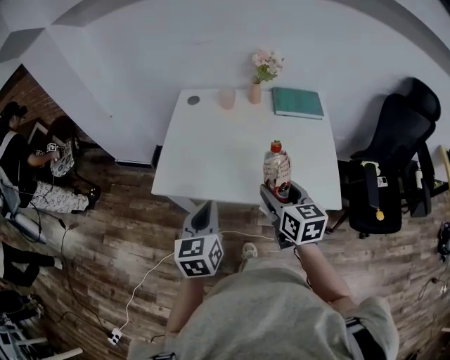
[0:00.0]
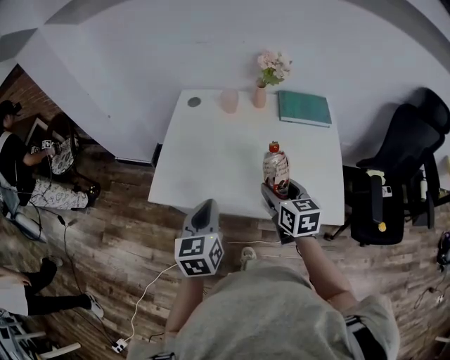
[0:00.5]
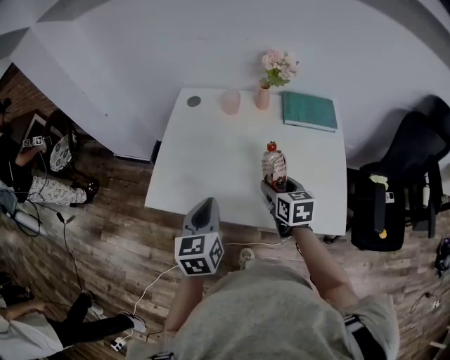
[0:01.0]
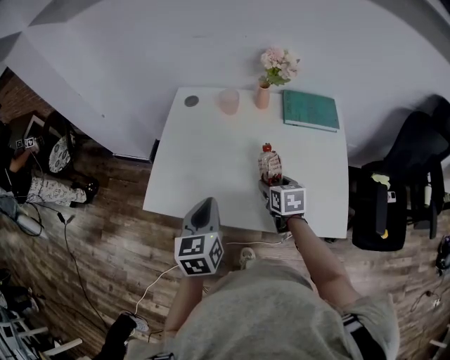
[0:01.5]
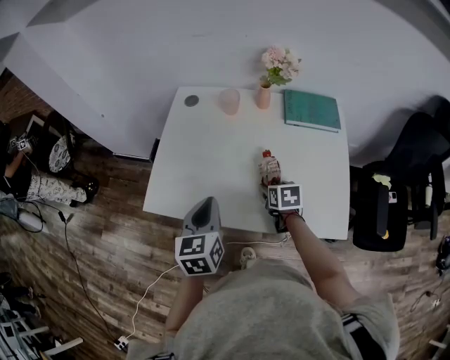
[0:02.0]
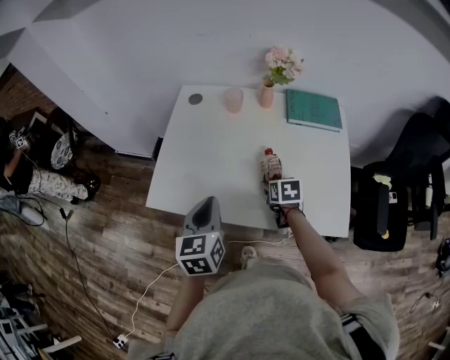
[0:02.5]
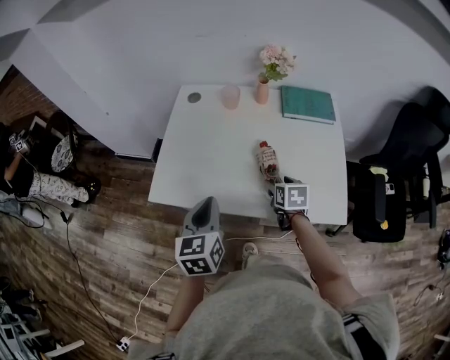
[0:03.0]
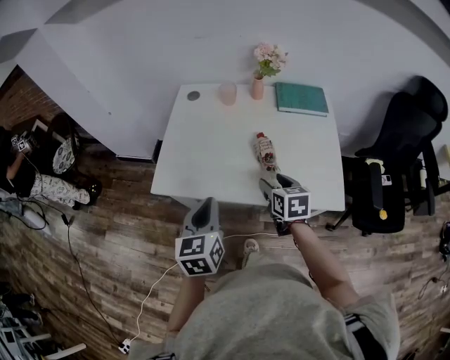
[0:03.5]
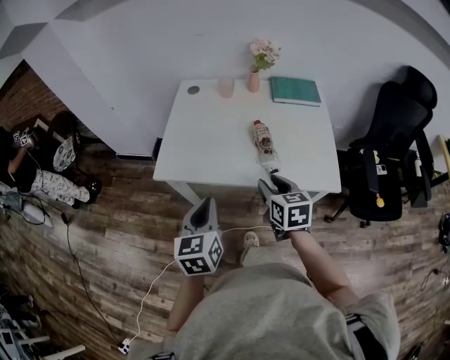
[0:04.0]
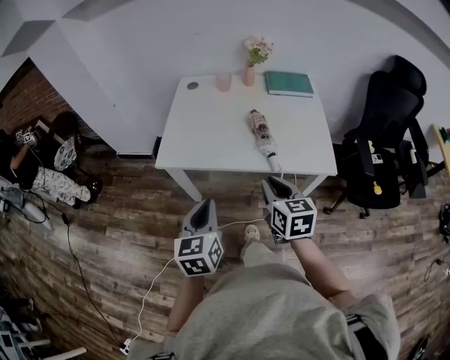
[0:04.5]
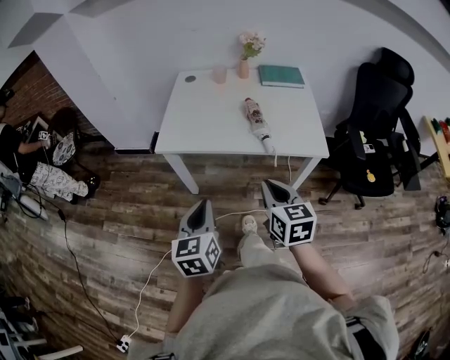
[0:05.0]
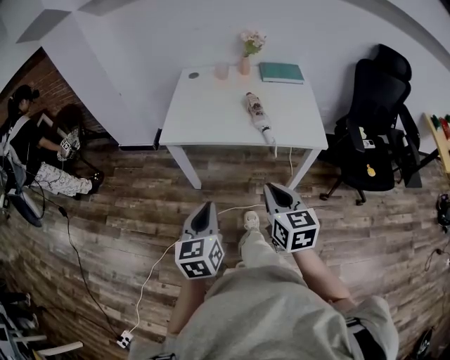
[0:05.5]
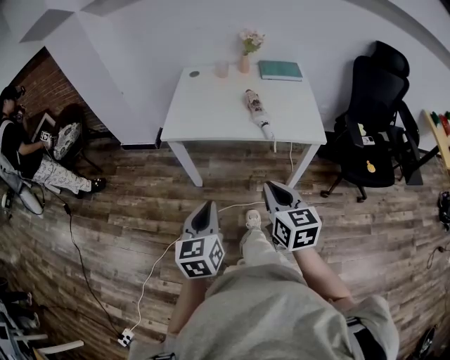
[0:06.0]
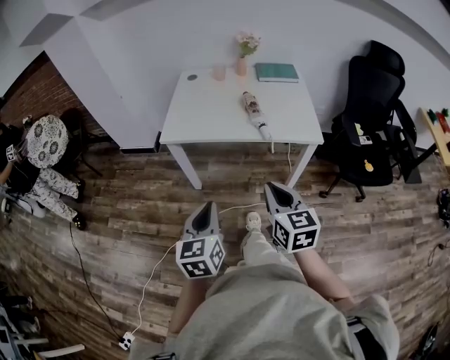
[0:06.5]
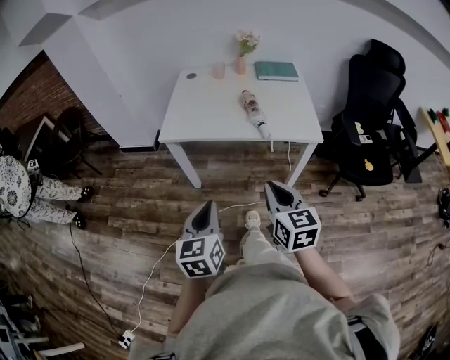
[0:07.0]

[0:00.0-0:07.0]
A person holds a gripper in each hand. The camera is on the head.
0:00.0 to 0:02.0: The right gripper shifts approximately 25 cm downward and forward, and angles its fingers downward, by roughly 30 degrees, while the left gripper shifts some 15 cm forward.
0:02.0 to 0:03.5: The left gripper is displaced backward by some 10 cm, while the right gripper goes roughly 15 cm upward and backward.
0:03.5 to 0:05.0: Both grippers move backward, about 25 cm. The right gripper closes.
0:05.0 to 0:07.0: Both grippers travel together backward, some 10 cm.

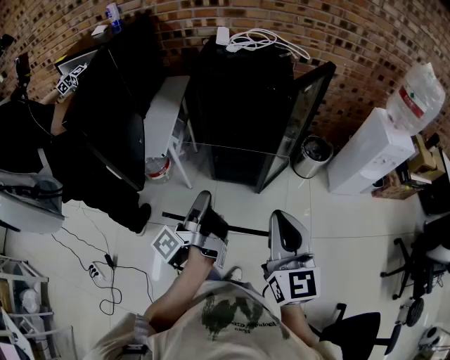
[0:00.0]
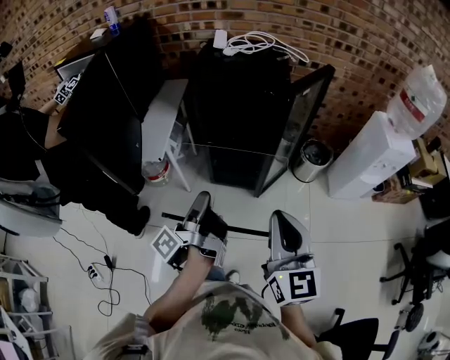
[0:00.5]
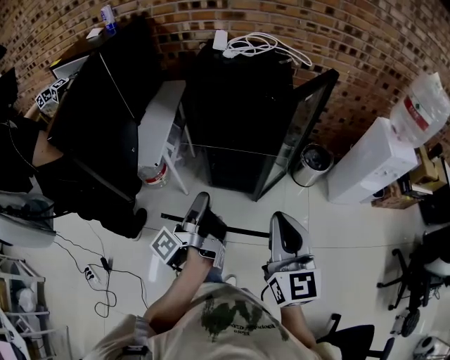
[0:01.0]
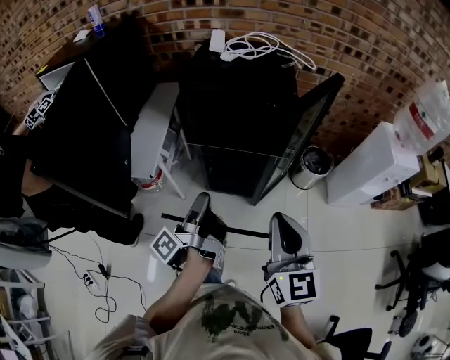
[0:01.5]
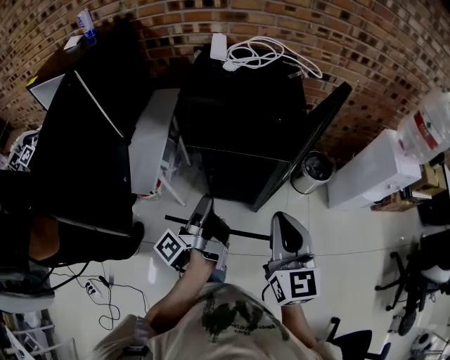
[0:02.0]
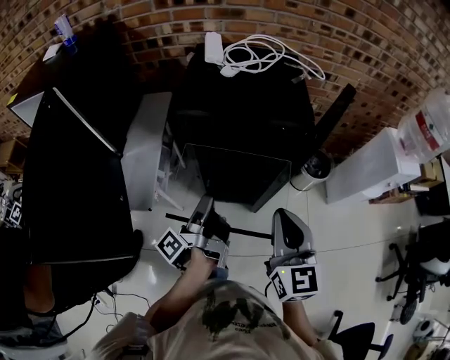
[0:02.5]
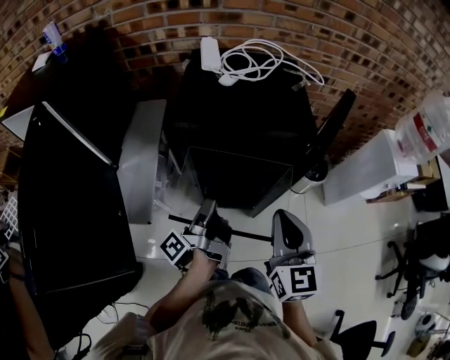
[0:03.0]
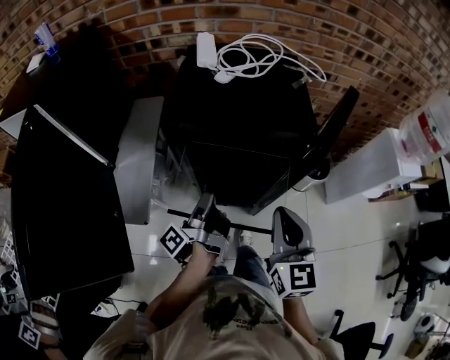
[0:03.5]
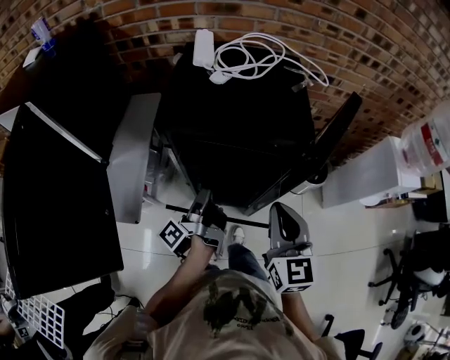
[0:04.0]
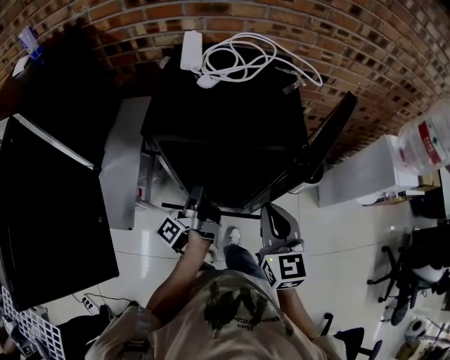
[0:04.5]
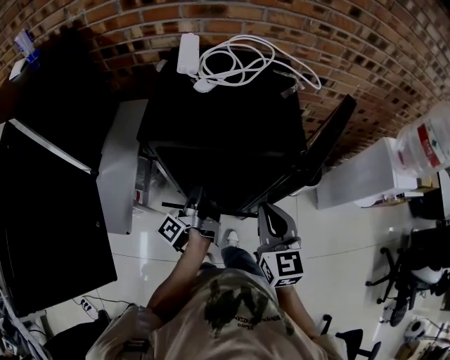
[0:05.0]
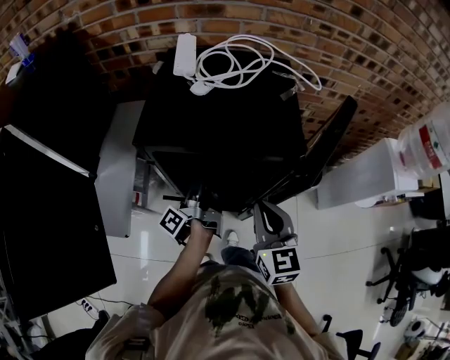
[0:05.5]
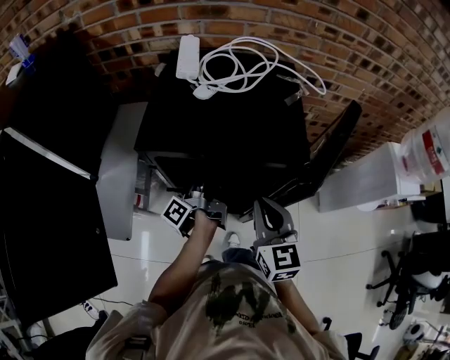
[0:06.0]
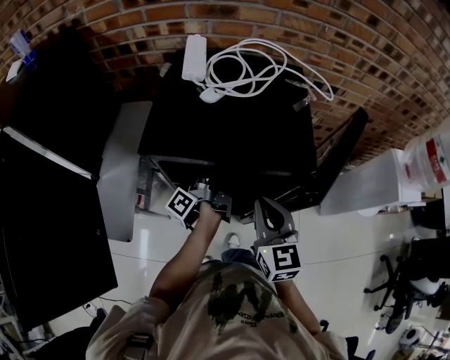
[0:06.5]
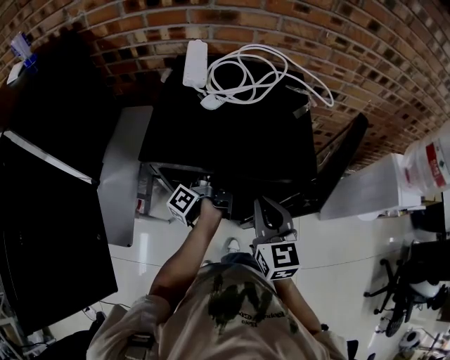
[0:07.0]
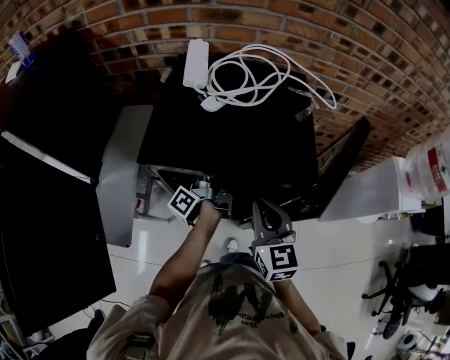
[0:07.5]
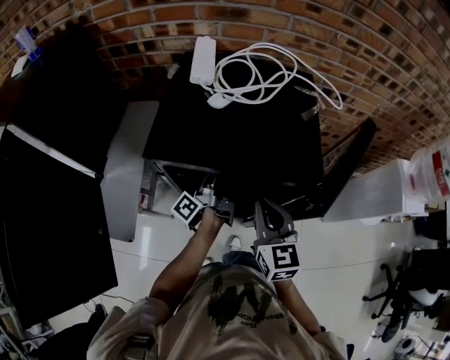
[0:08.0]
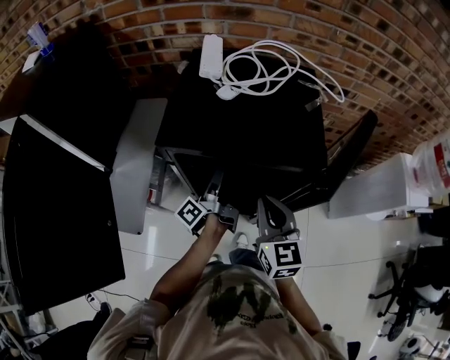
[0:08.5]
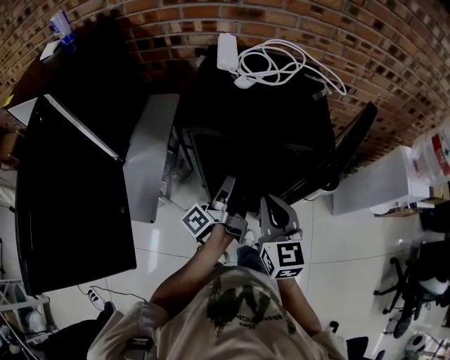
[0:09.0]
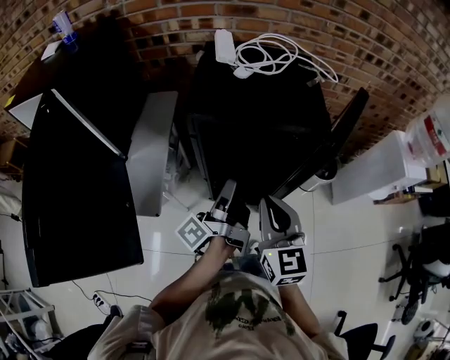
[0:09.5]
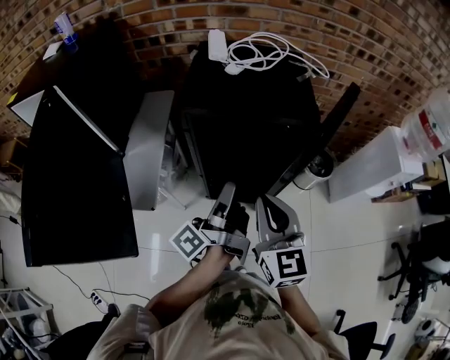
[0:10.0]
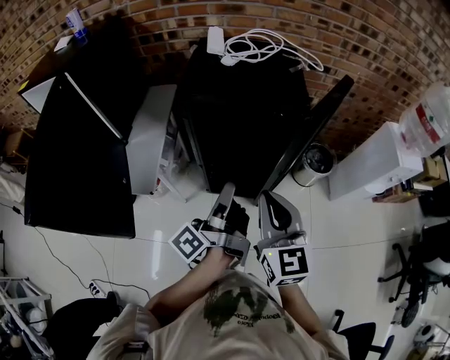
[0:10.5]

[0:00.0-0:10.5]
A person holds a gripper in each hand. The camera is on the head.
0:00.0 to 0:02.0: The right gripper moves some 20 cm.
0:02.0 to 0:04.0: The right gripper changes place by approximately 15 cm.
0:04.0 to 0:06.5: The right gripper ends up some 10 cm from where it was.
0:08.5 to 0:10.5: The right gripper shifts by some 20 cm.

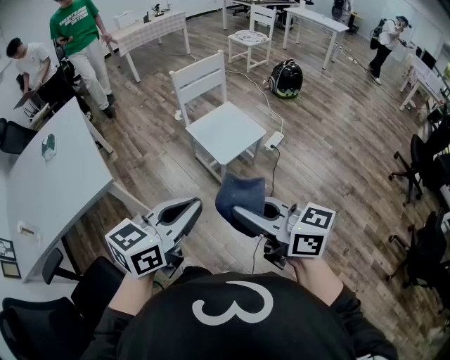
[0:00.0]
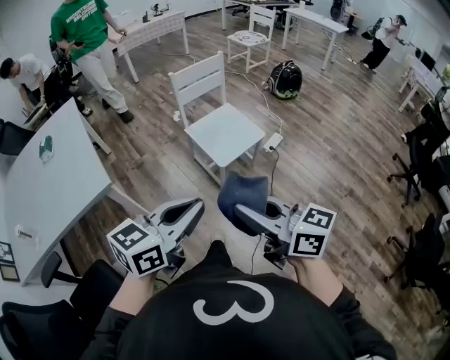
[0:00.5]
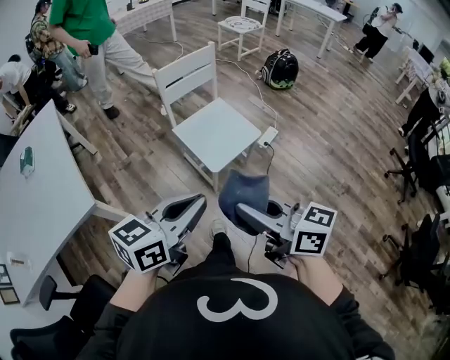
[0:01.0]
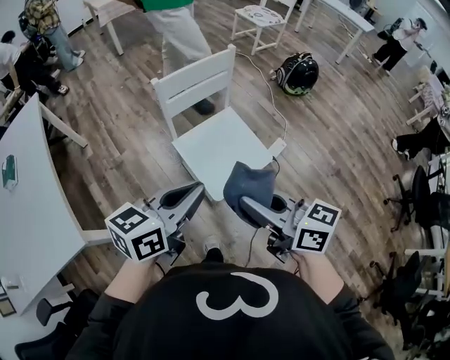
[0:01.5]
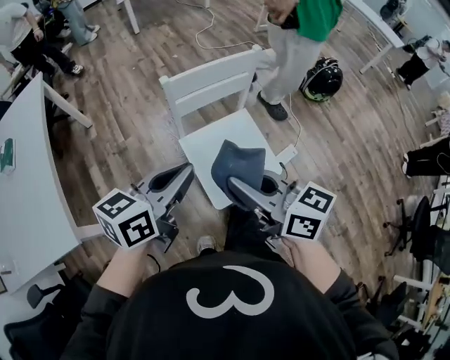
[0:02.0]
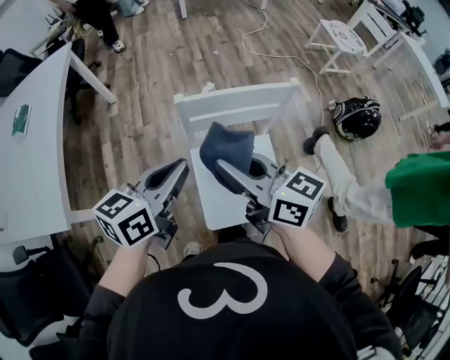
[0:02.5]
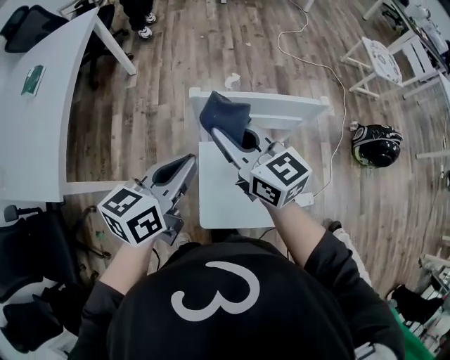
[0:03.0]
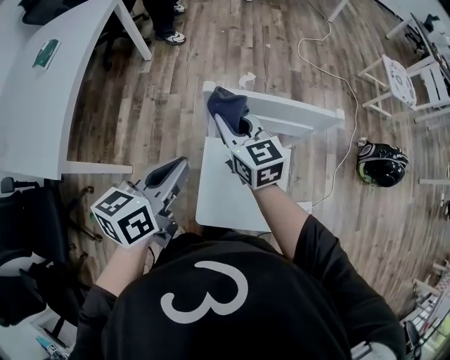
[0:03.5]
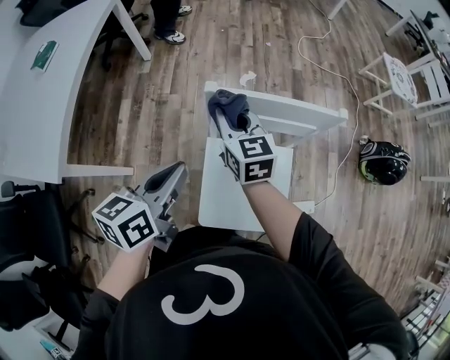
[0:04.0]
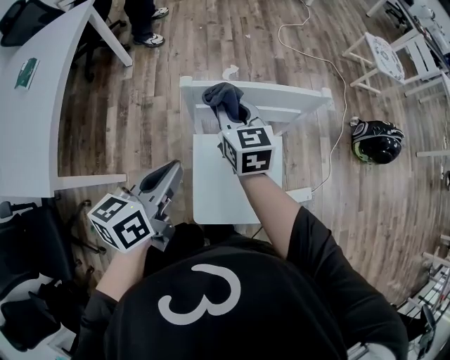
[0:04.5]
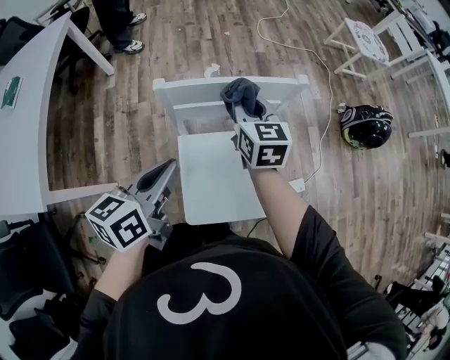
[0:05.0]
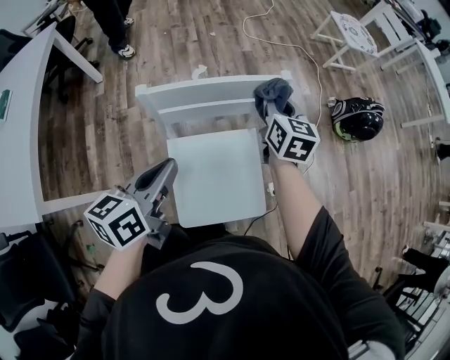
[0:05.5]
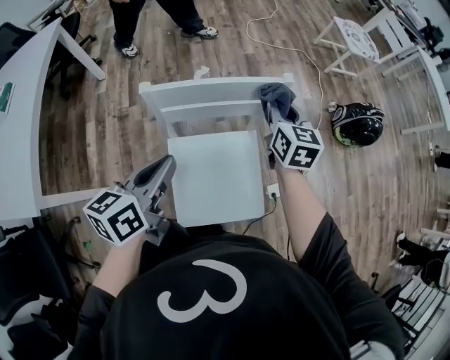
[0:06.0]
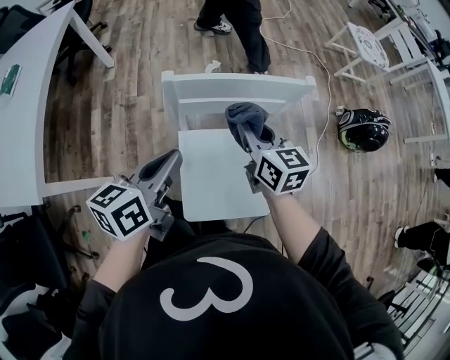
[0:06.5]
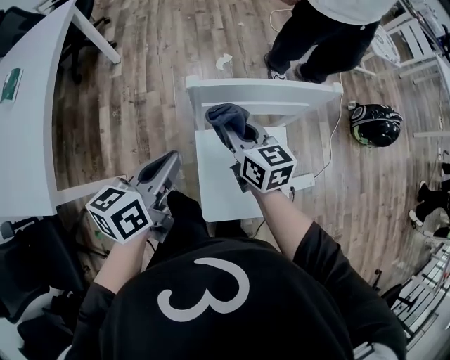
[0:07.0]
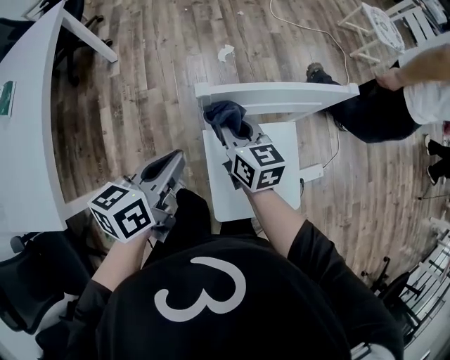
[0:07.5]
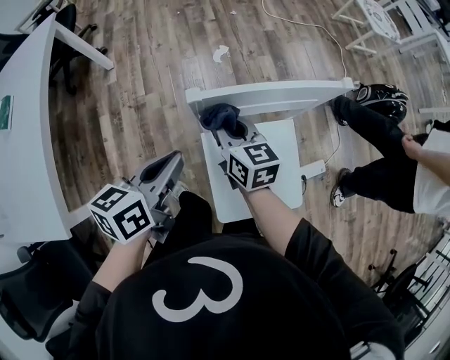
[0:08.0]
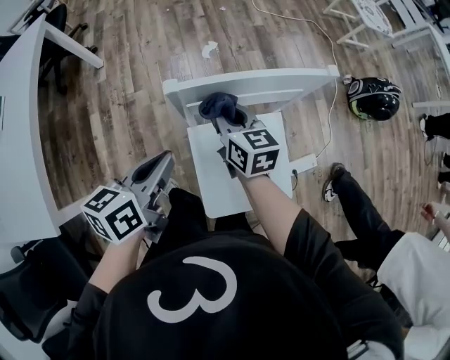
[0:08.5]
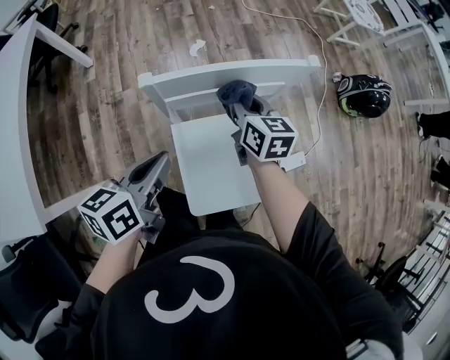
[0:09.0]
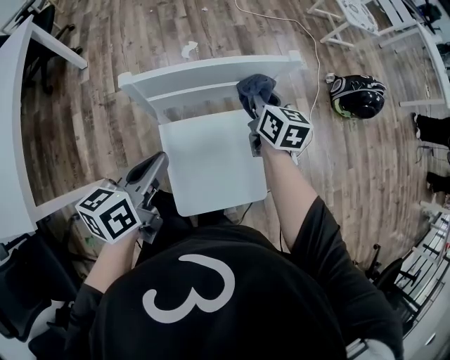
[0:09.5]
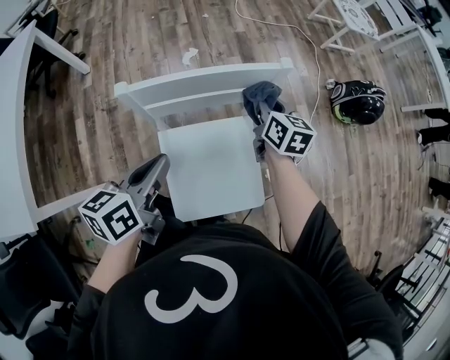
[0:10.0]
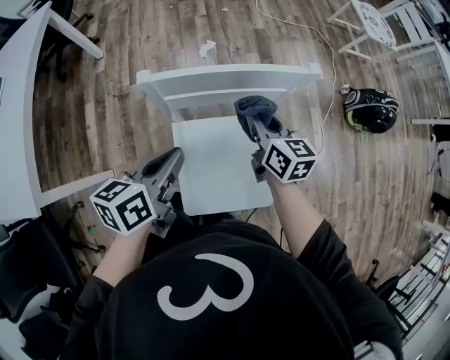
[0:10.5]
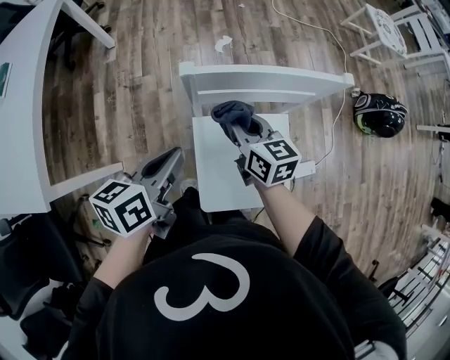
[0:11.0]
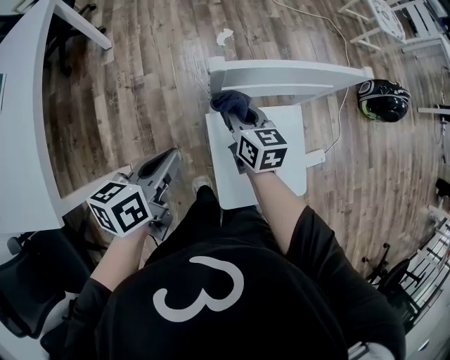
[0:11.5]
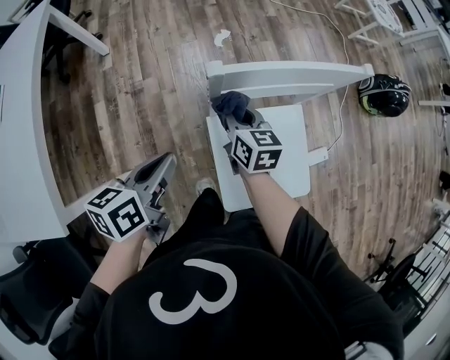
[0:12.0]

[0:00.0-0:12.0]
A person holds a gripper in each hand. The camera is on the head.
0:00.0 to 0:02.0: The two grippers travel together, forward, approximately 50 cm. The left gripper turns by about 20 degrees.
0:02.0 to 0:04.0: The right gripper moves some 35 cm, and rotates some 30 degrees. The left gripper shifts by approximately 15 cm, and changes its angle by some 40 degrees.
0:04.0 to 0:06.0: The left gripper moves to the right, approximately 10 cm; the right gripper heads to the right, covering some 30 cm, and swivels about 30 degrees.
0:06.0 to 0:08.0: The right gripper moves to the left, some 25 cm, and turns by about 20 degrees. The left gripper shifts roughly 10 cm to the left.
0:08.0 to 0:10.0: The left gripper shifts approximately 10 cm to the right. Meanwhile the right gripper shifts about 25 cm to the right.
0:10.0 to 0:12.0: The right gripper moves to the left, roughly 25 cm. Meanwhile the left gripper shifts approximately 15 cm to the left.
